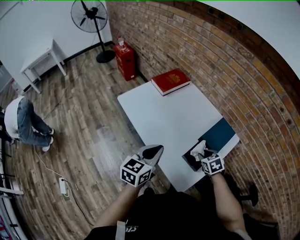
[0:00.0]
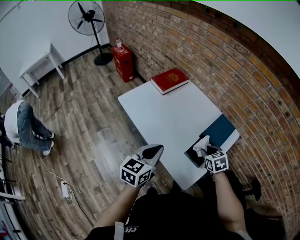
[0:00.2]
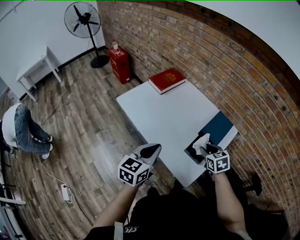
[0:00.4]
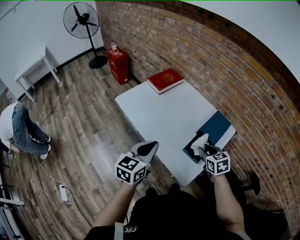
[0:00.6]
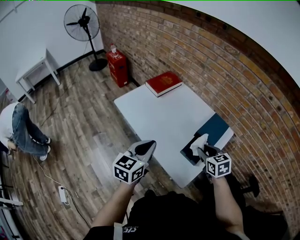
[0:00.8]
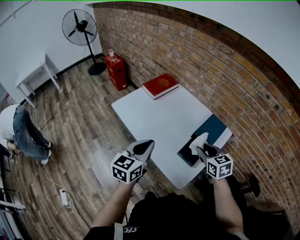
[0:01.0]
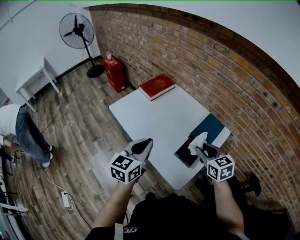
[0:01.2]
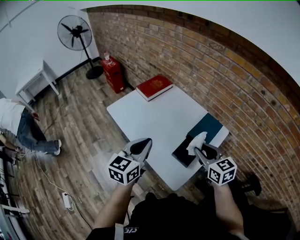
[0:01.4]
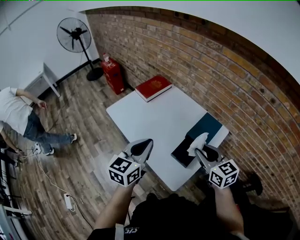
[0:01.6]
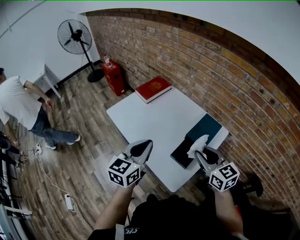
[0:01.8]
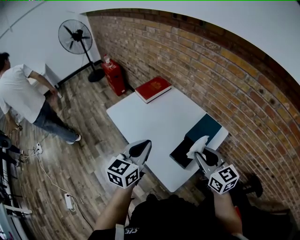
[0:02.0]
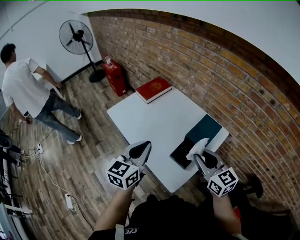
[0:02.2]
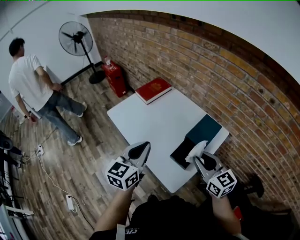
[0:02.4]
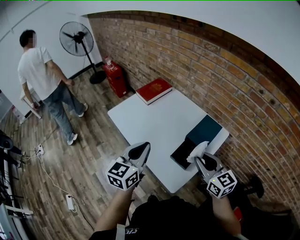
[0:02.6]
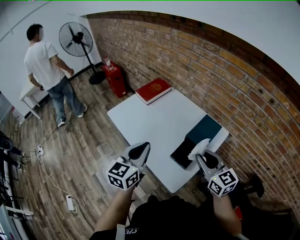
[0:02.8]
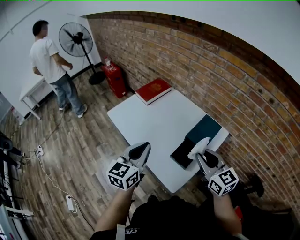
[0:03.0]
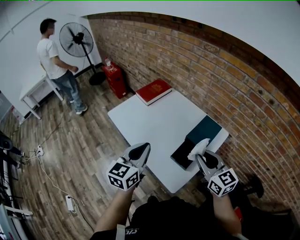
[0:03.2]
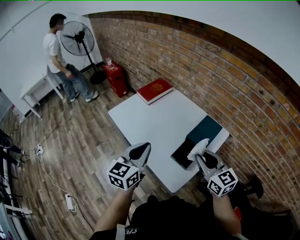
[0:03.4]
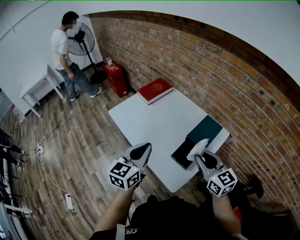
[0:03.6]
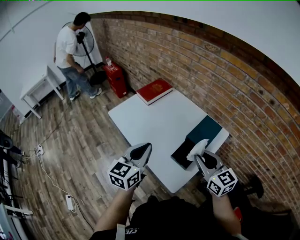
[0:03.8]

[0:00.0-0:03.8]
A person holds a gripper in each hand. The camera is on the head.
0:00.0 to 0:01.2: The left gripper goes some 5 cm upward. The right gripper shifts some 15 cm upward, and turns by approximately 30 degrees.
0:01.2 to 0:02.6: The right gripper changes place by approximately 5 cm.
0:02.6 to 0:03.8: The grippers stay close to where they were, moving slightly.

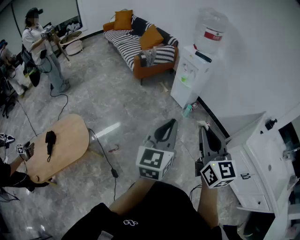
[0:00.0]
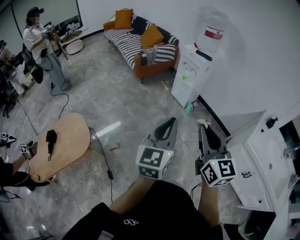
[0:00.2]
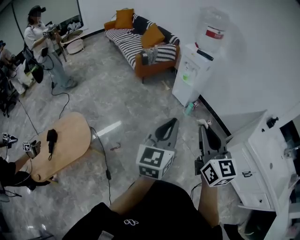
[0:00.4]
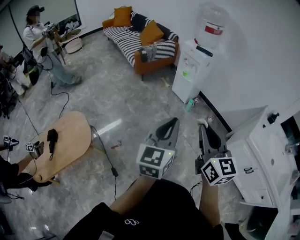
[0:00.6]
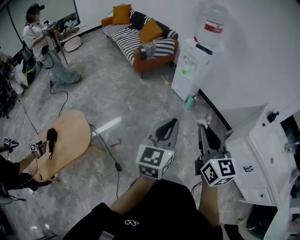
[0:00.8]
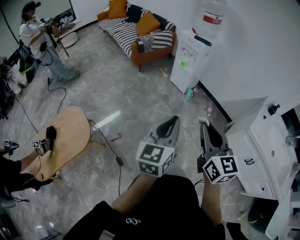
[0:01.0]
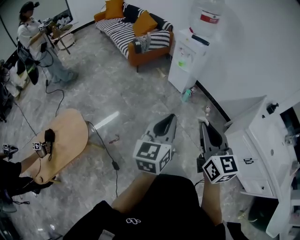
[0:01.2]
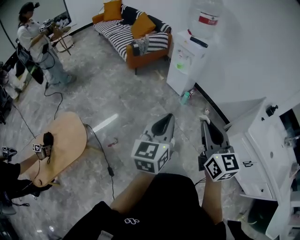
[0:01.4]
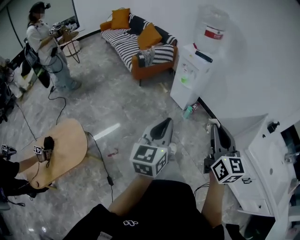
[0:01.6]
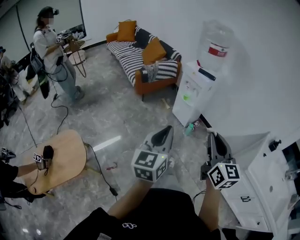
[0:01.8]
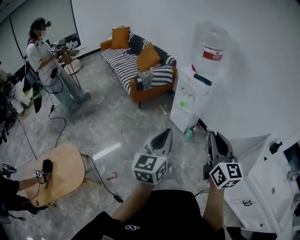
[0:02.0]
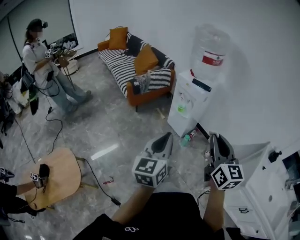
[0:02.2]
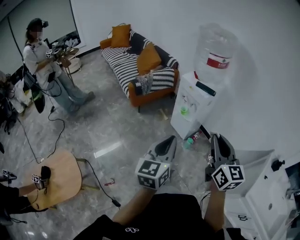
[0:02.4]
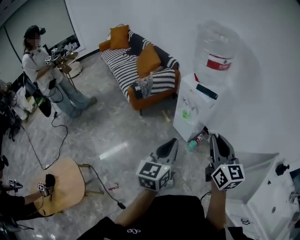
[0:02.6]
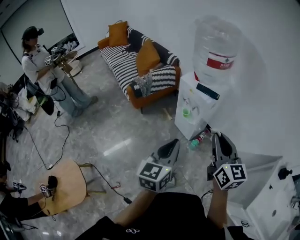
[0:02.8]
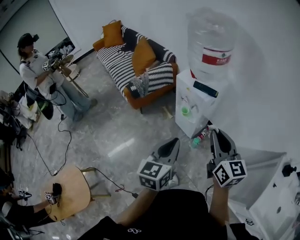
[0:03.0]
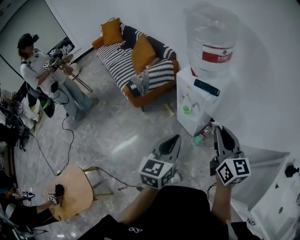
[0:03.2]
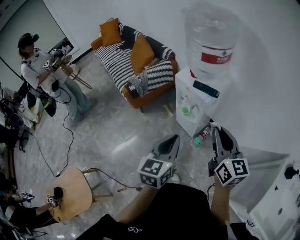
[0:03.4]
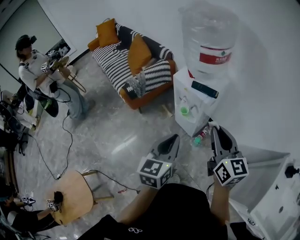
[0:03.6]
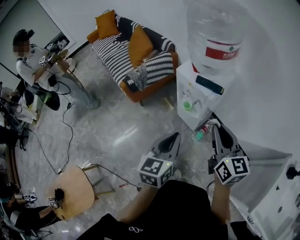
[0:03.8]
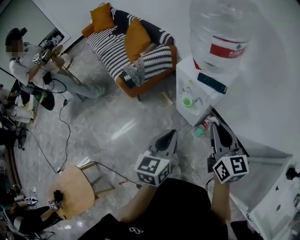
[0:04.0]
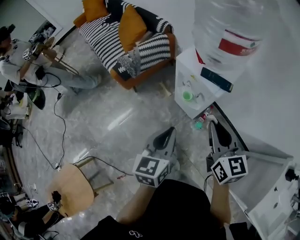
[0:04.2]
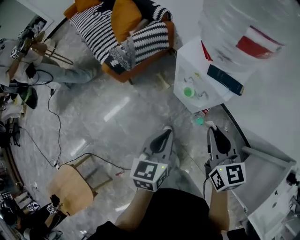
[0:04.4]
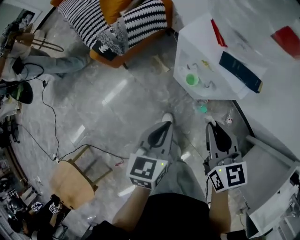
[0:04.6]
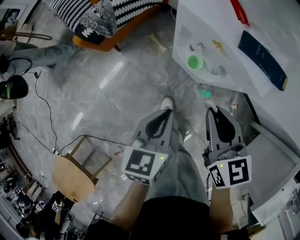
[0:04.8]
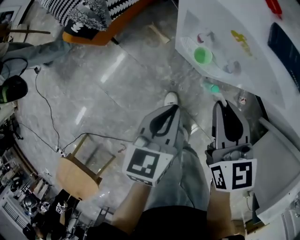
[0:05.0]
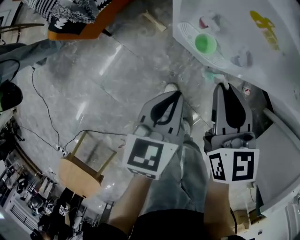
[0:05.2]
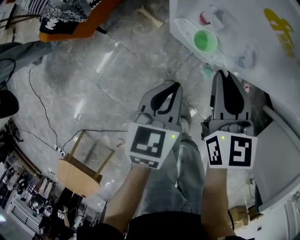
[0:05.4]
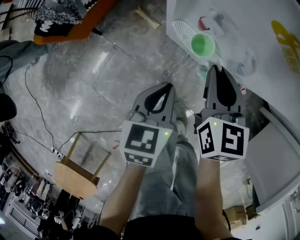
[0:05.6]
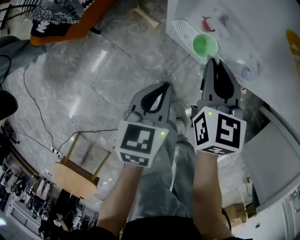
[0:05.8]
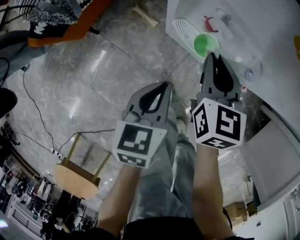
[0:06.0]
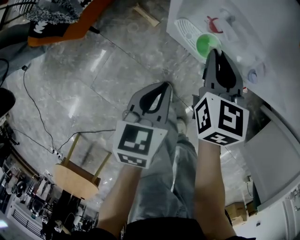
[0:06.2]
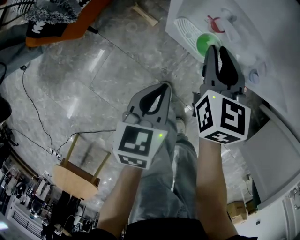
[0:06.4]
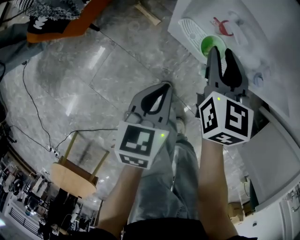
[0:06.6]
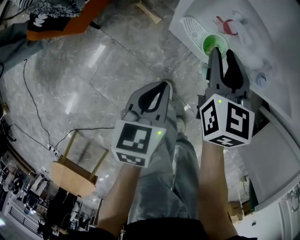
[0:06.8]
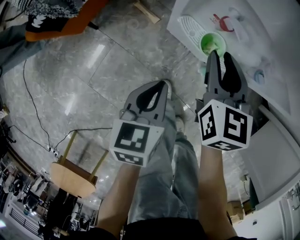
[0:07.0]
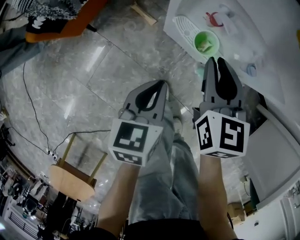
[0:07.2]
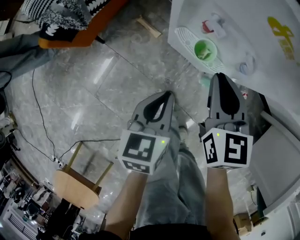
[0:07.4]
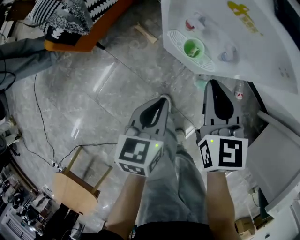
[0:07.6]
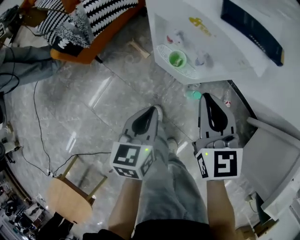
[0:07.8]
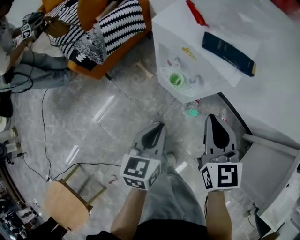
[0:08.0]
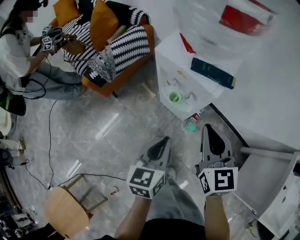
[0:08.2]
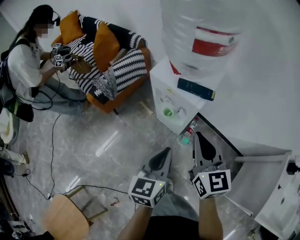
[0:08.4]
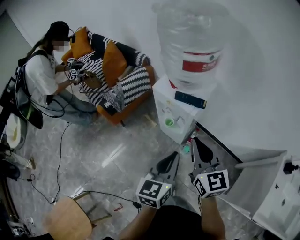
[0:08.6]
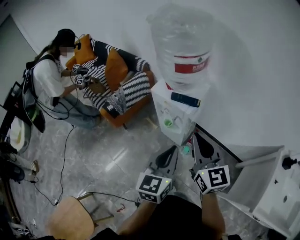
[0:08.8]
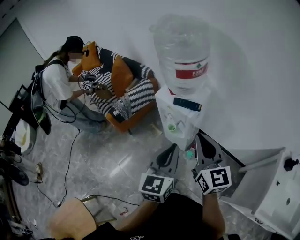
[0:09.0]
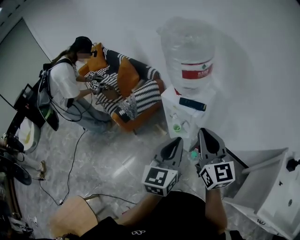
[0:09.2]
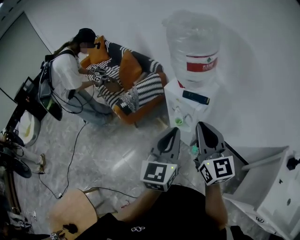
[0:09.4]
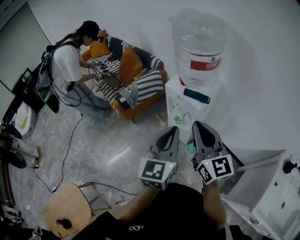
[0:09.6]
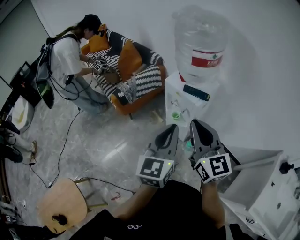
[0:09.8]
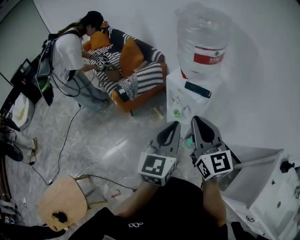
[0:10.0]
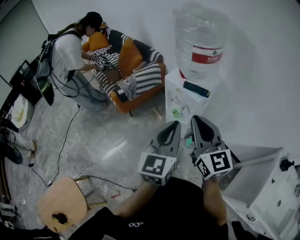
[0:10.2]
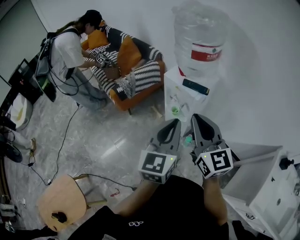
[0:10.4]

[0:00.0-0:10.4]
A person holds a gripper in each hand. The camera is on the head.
0:00.0 to 0:01.4: The grippers make only small movements.
0:01.4 to 0:03.0: Both grippers are carried forward, about 50 cm.
0:03.0 to 0:04.4: Both grippers move forward and downward, about 25 cm.
0:04.4 to 0:06.0: The right gripper heads downward and forward, covering about 40 cm, and rotates approximately 30 degrees. Meanwhile the left gripper travels downward by approximately 35 cm, and turns by about 20 degrees.
0:06.0 to 0:07.4: The right gripper is displaced upward by some 5 cm.
0:07.4 to 0:09.0: The left gripper heads upward, covering approximately 50 cm, and tilts its fingers approximately 30 degrees upward; the right gripper travels upward and backward by about 50 cm, and angles its fingers upward, by approximately 30 degrees.
0:09.0 to 0:10.4: The right gripper goes roughly 5 cm to the left. The left gripper shifts by some 5 cm.

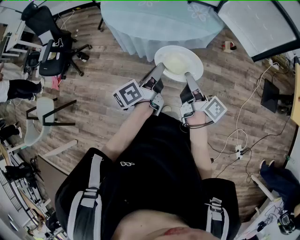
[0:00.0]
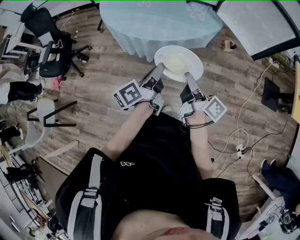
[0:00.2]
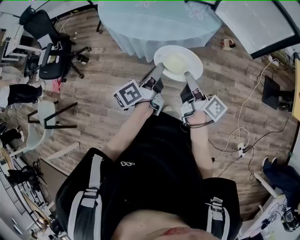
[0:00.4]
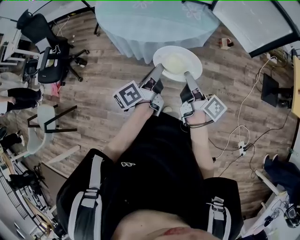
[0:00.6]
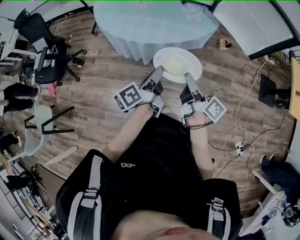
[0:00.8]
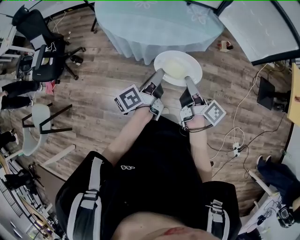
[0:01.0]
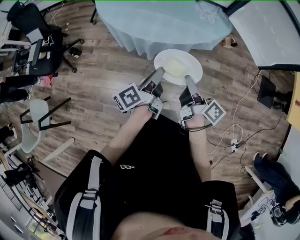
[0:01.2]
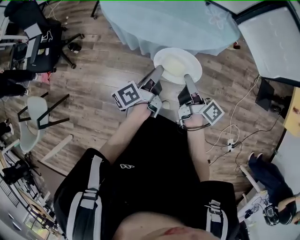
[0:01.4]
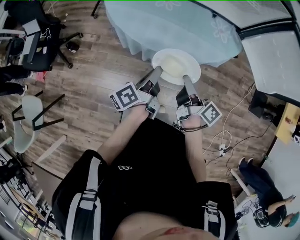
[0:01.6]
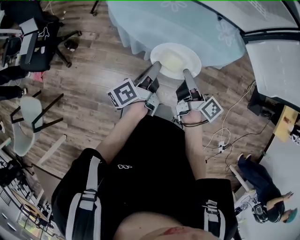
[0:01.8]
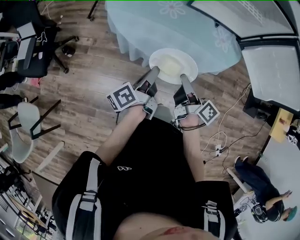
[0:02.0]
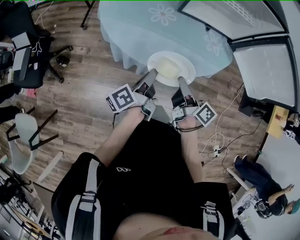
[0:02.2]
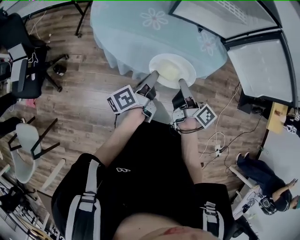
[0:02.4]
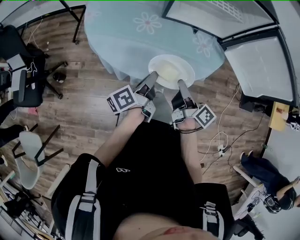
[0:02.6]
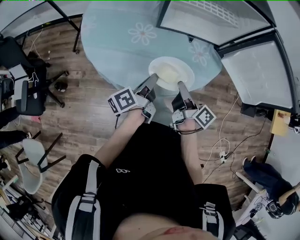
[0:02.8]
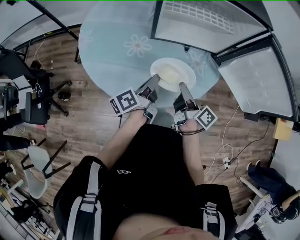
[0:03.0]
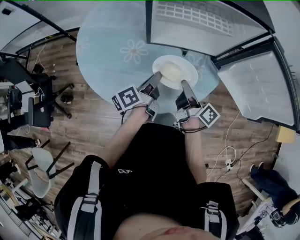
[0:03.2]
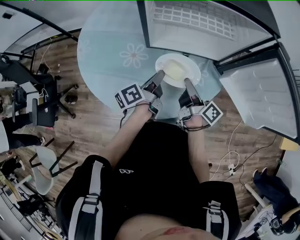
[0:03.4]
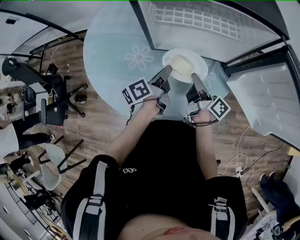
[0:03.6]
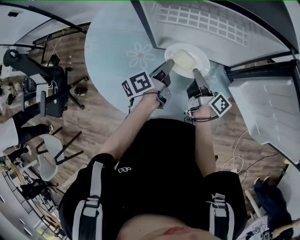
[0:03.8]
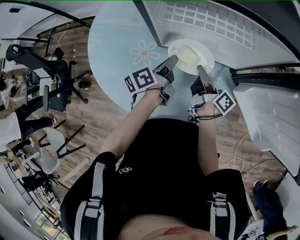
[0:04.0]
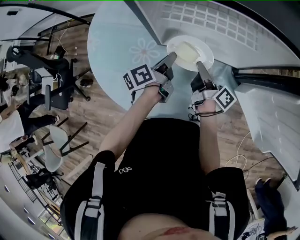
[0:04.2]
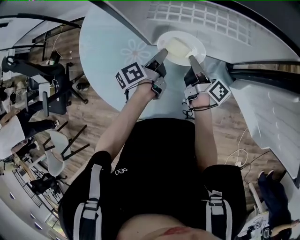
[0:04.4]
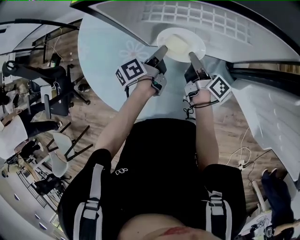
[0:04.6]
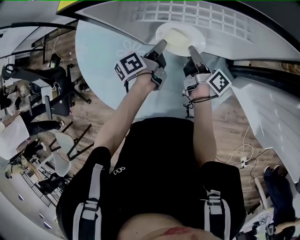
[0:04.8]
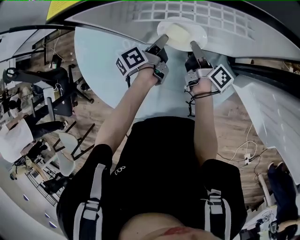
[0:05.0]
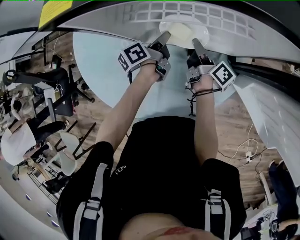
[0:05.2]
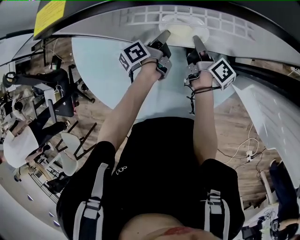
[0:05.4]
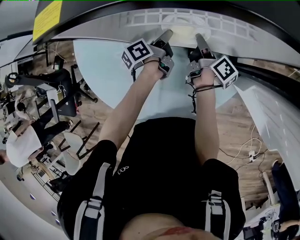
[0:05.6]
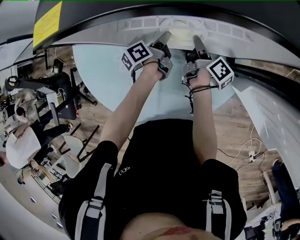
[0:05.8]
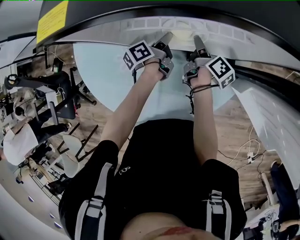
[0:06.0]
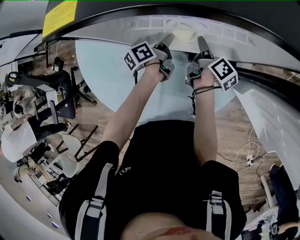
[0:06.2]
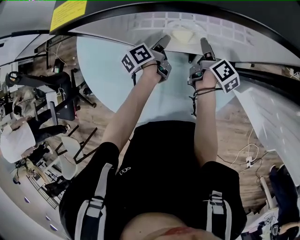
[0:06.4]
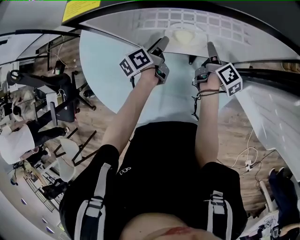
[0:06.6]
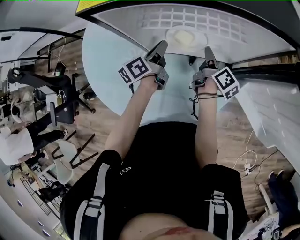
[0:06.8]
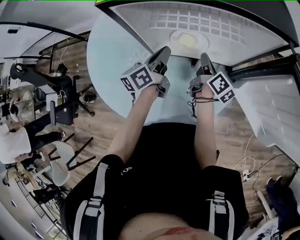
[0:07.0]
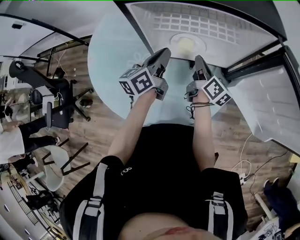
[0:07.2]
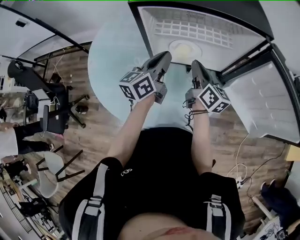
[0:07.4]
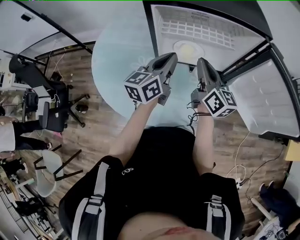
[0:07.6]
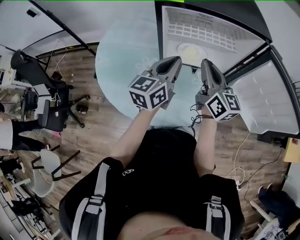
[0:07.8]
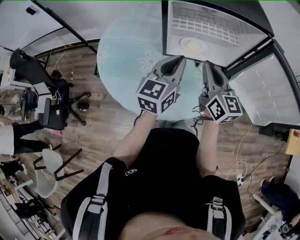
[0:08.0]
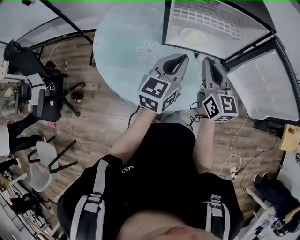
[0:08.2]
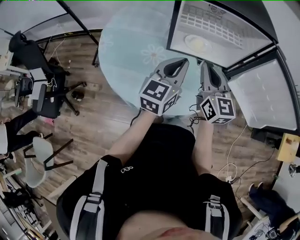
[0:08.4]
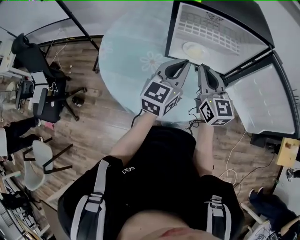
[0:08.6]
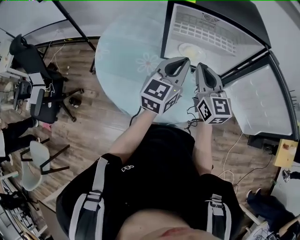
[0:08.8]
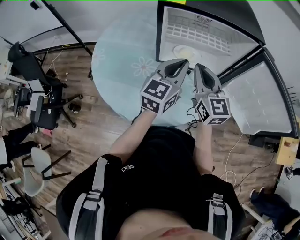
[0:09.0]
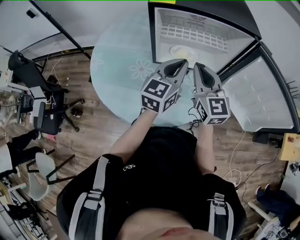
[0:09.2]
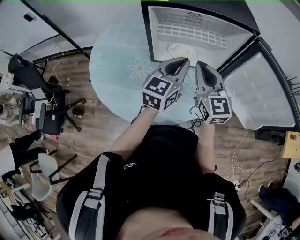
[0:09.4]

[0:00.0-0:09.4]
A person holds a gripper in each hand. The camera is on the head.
0:00.0 to 0:01.6: The left gripper is displaced to the left, forward and downward by roughly 20 cm; the right gripper goes about 20 cm forward and to the left.
0:01.6 to 0:03.2: The grippers both shift forward by roughly 25 cm.
0:03.2 to 0:04.8: The right gripper travels forward by roughly 15 cm. Meanwhile the left gripper goes some 20 cm forward and to the right.
0:04.8 to 0:06.2: The left gripper goes about 10 cm forward and downward, while the right gripper goes approximately 5 cm forward, changes its angle by about 20 degrees, and opens up.
0:06.2 to 0:07.8: Both grippers travel together upward and backward, some 30 cm. The right gripper rolls counterclockwise, seen from behind, by approximately 60 degrees, and closes up, while the left gripper rolls clockwise, seen from behind, by some 50 degrees, and closes.
0:07.8 to 0:09.4: The left gripper is displaced to the right by roughly 10 cm; the right gripper changes its angle by some 30 degrees.
